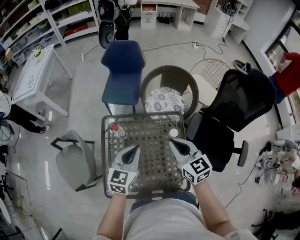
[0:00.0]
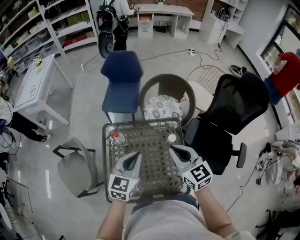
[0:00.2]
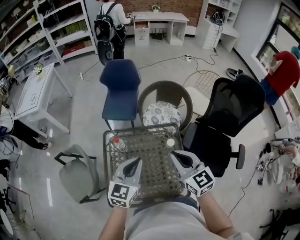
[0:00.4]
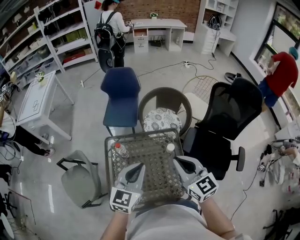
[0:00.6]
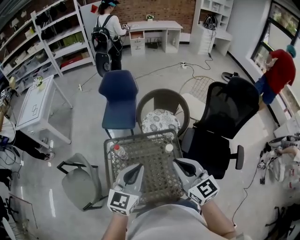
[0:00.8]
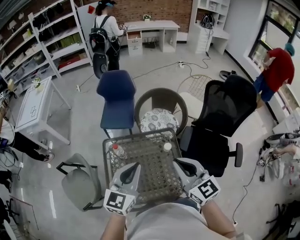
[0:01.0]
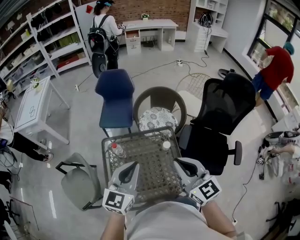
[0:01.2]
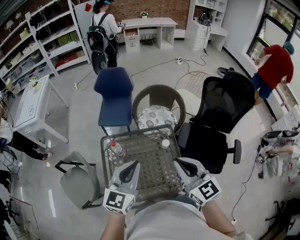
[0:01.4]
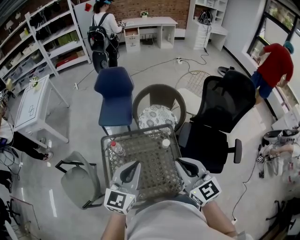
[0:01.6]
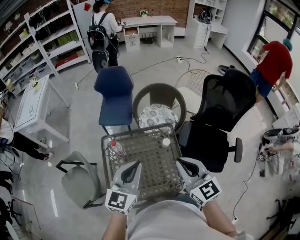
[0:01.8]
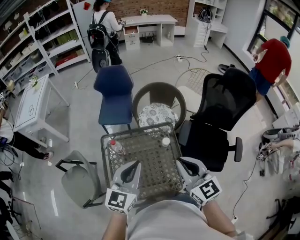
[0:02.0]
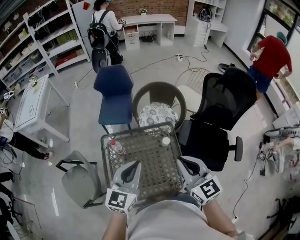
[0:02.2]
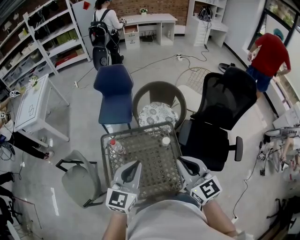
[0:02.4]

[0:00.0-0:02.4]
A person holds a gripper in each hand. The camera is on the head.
0:00.0 to 0:01.2: Both grippers move upward and backward, approximately 15 cm.
0:01.2 to 0:02.4: The grippers stay close to where they were, moving slightly.

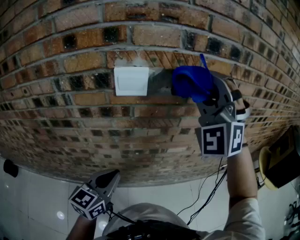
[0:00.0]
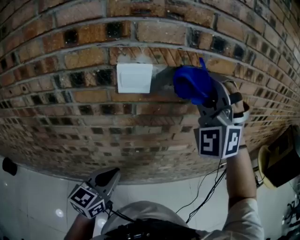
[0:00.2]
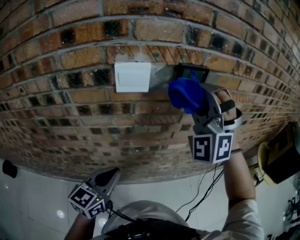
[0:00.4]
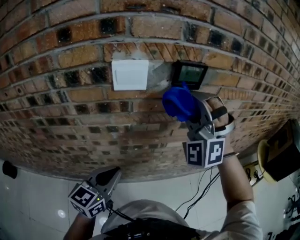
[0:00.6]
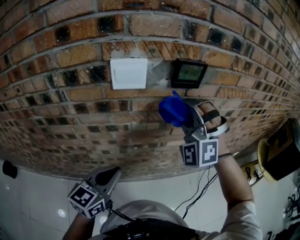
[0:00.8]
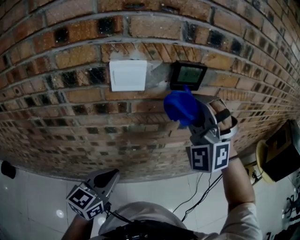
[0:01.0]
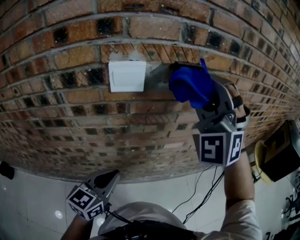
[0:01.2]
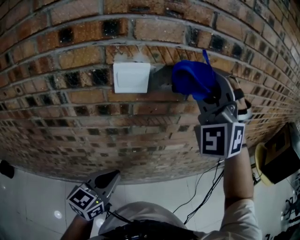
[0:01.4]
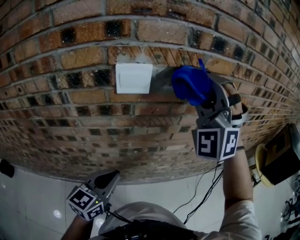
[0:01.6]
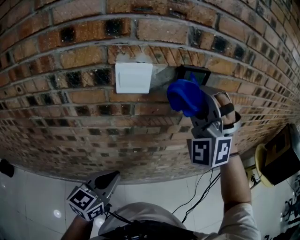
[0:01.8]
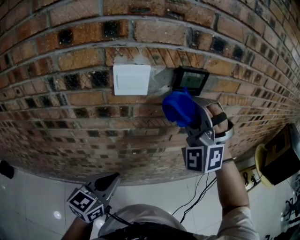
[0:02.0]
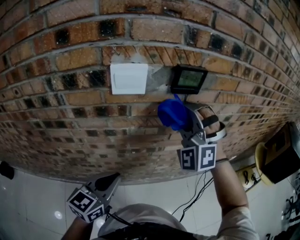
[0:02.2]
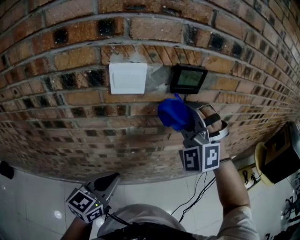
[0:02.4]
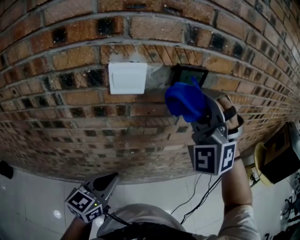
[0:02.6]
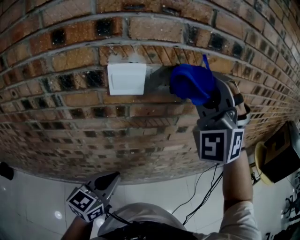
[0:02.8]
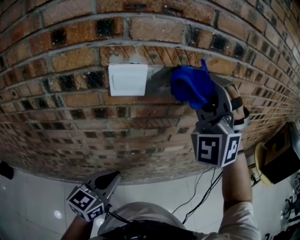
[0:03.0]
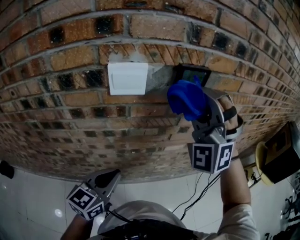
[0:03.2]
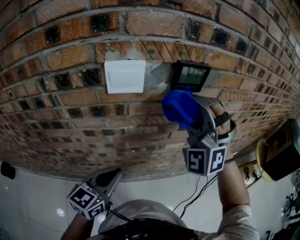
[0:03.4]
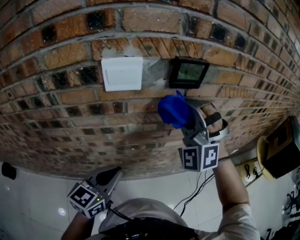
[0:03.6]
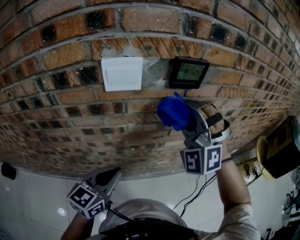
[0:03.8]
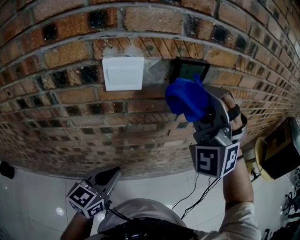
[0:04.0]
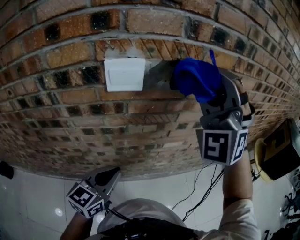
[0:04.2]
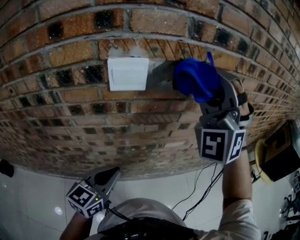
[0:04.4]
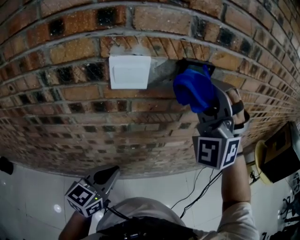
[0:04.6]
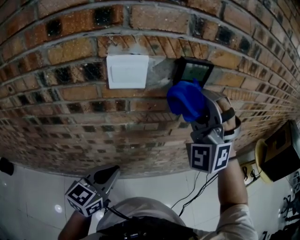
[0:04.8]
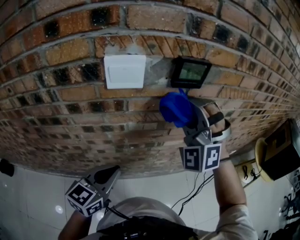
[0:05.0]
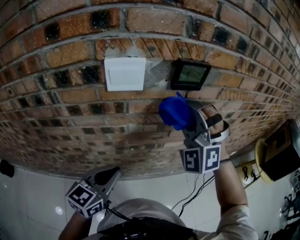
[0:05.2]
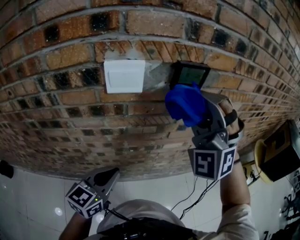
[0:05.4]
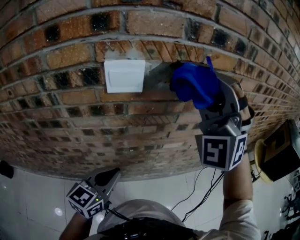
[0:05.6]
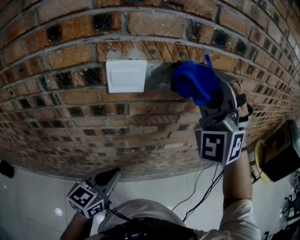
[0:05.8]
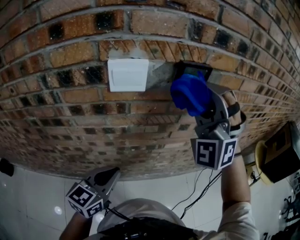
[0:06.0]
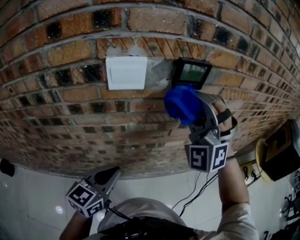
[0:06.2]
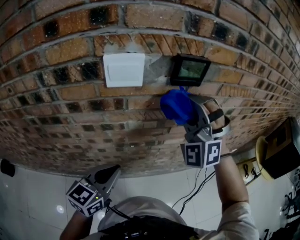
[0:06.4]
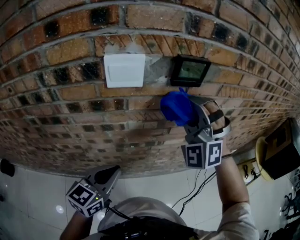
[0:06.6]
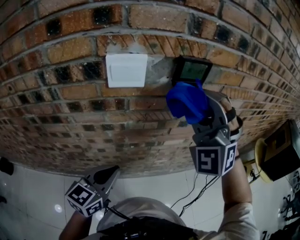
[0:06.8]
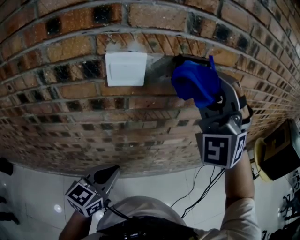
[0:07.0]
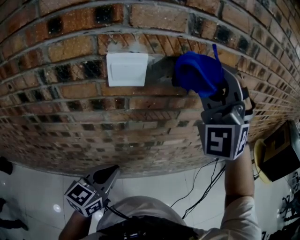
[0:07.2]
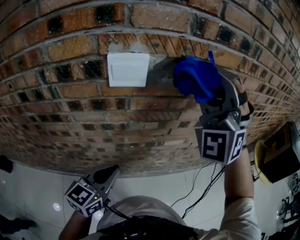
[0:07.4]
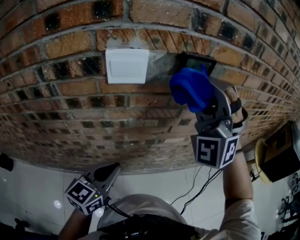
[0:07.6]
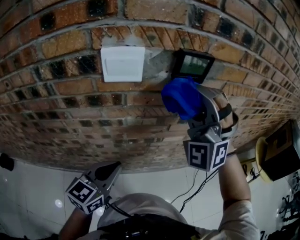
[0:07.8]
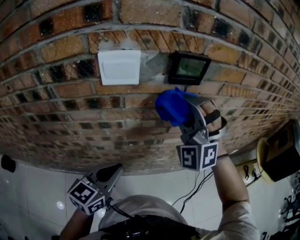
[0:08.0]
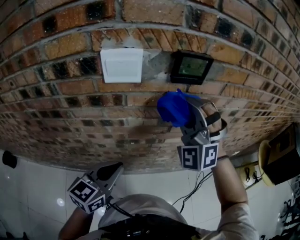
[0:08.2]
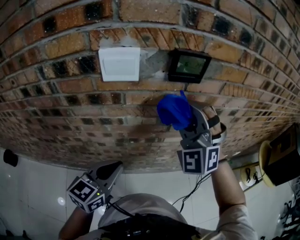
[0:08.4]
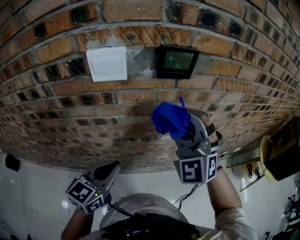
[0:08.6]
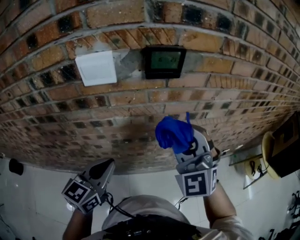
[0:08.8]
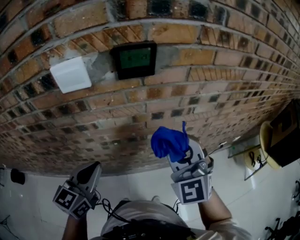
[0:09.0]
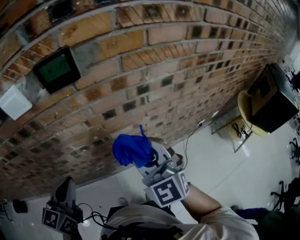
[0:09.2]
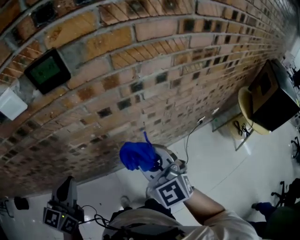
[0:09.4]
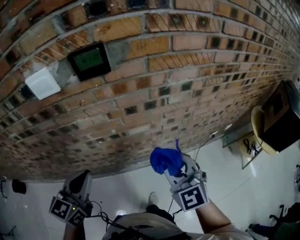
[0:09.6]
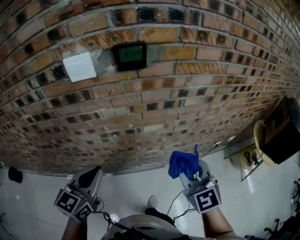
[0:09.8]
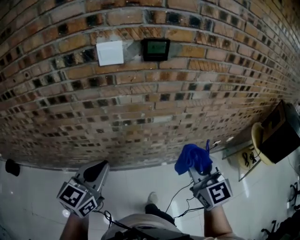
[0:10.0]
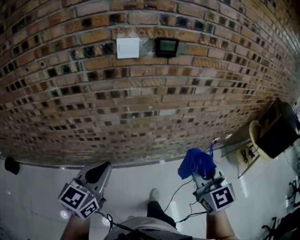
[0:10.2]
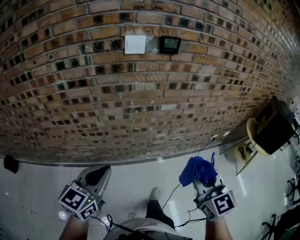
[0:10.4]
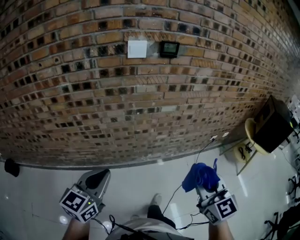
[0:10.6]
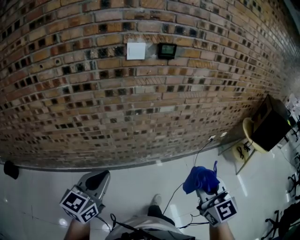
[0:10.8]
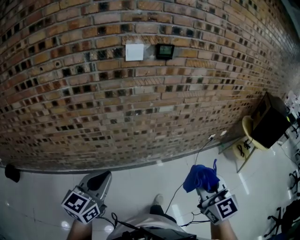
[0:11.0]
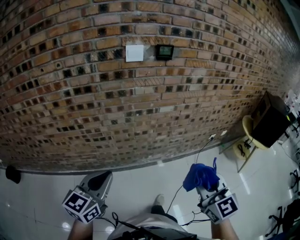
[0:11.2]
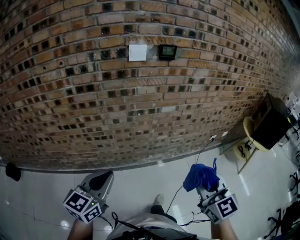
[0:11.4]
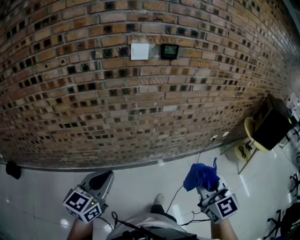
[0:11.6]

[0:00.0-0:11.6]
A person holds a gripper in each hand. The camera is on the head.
0:00.0 to 0:01.4: The right gripper reaches about 15 cm downward, then returns.
0:01.4 to 0:02.8: The right gripper moves approximately 15 cm downward and comes back.
0:02.8 to 0:04.4: The right gripper moves about 15 cm downward and comes back.
0:04.4 to 0:05.8: The right gripper travels downward and back again, some 15 cm each way.
0:05.8 to 0:07.2: The right gripper goes downward and returns, about 10 cm each way.
0:07.2 to 0:08.8: The right gripper travels downward by approximately 15 cm, and changes its angle by some 40 degrees.
0:08.8 to 0:10.2: The grippers both shift backward by about 25 cm. The right gripper changes its angle by roughly 40 degrees.
0:10.2 to 0:11.6: Both grippers move backward, about 15 cm.

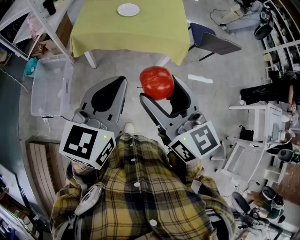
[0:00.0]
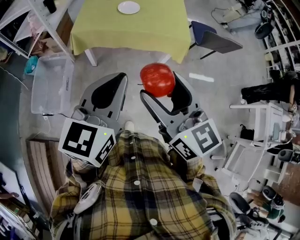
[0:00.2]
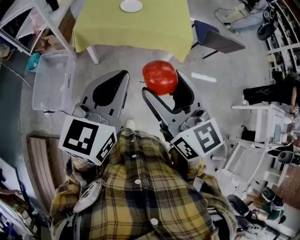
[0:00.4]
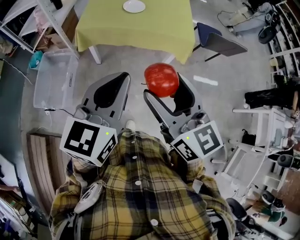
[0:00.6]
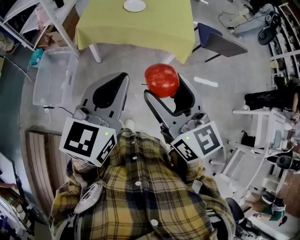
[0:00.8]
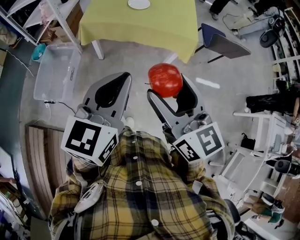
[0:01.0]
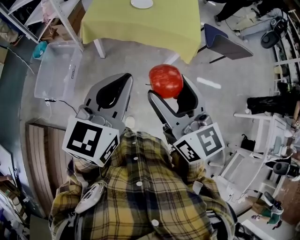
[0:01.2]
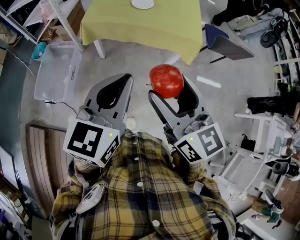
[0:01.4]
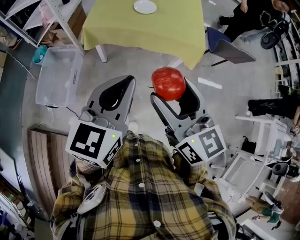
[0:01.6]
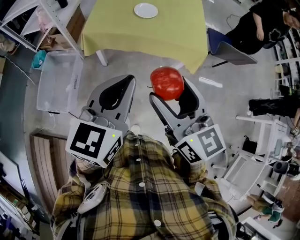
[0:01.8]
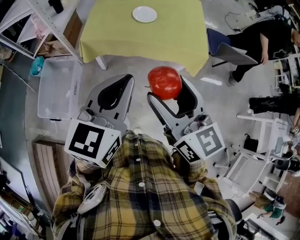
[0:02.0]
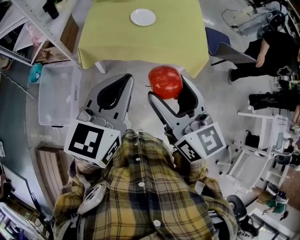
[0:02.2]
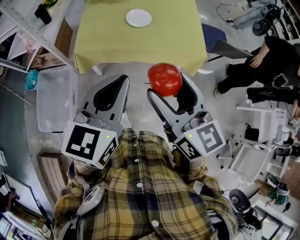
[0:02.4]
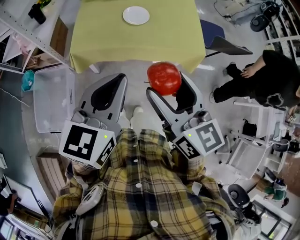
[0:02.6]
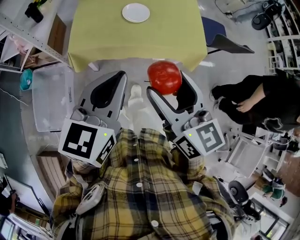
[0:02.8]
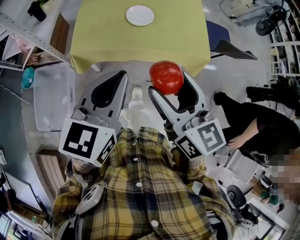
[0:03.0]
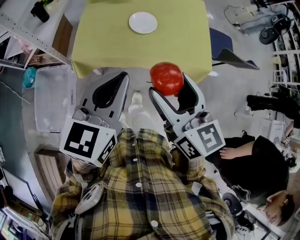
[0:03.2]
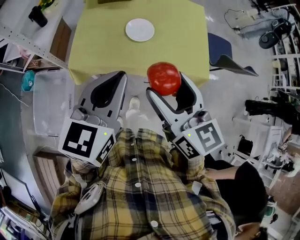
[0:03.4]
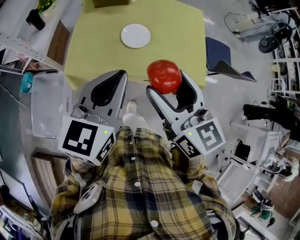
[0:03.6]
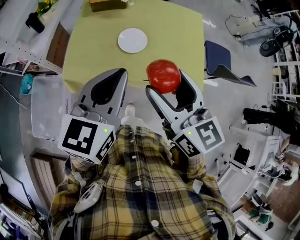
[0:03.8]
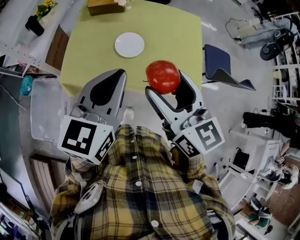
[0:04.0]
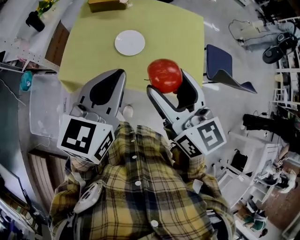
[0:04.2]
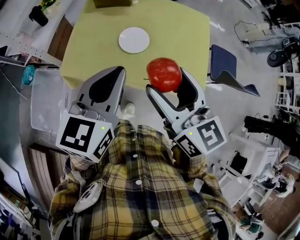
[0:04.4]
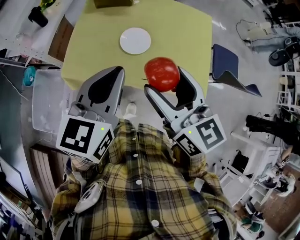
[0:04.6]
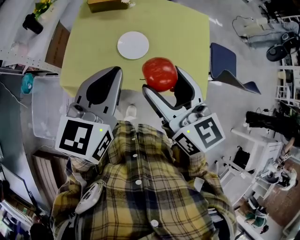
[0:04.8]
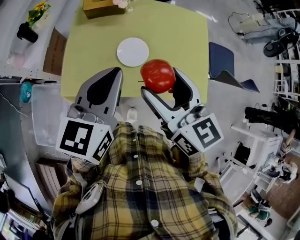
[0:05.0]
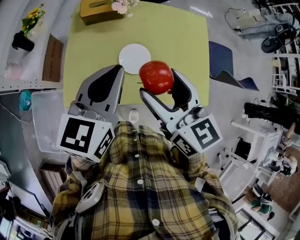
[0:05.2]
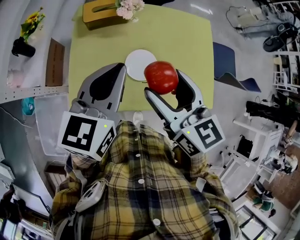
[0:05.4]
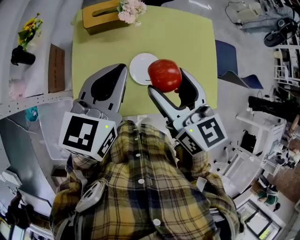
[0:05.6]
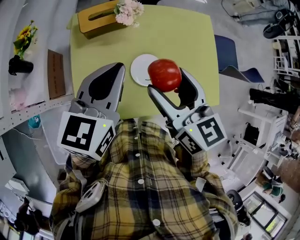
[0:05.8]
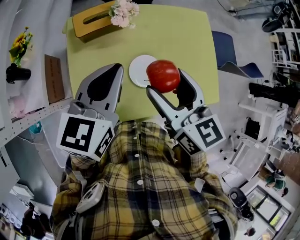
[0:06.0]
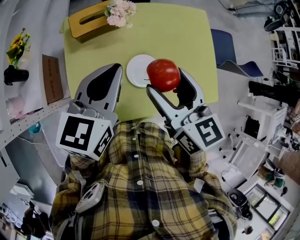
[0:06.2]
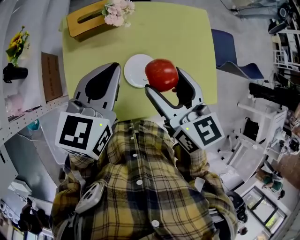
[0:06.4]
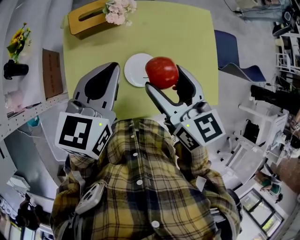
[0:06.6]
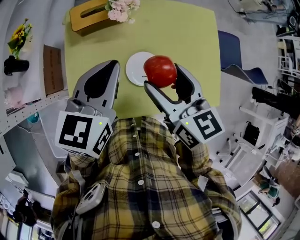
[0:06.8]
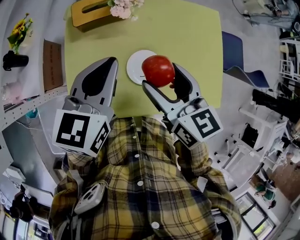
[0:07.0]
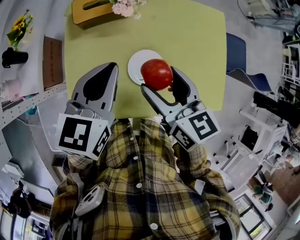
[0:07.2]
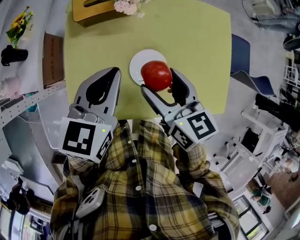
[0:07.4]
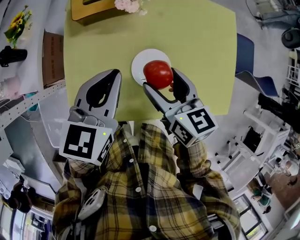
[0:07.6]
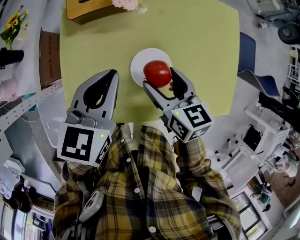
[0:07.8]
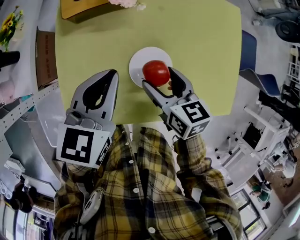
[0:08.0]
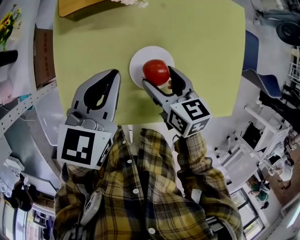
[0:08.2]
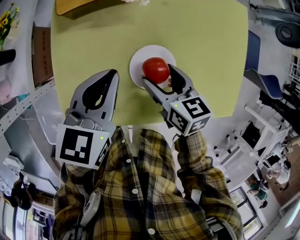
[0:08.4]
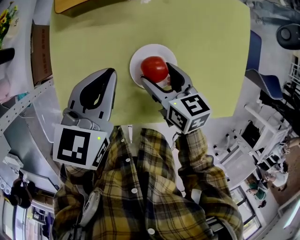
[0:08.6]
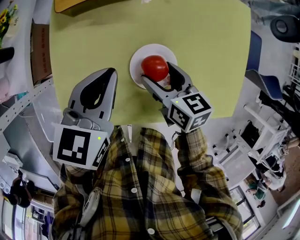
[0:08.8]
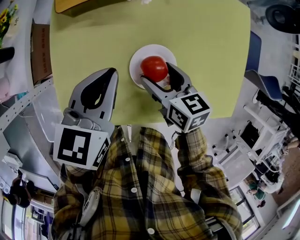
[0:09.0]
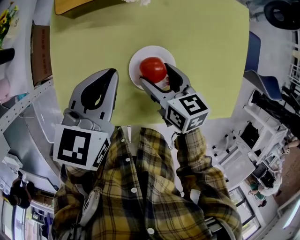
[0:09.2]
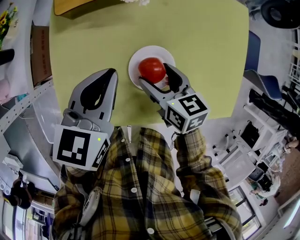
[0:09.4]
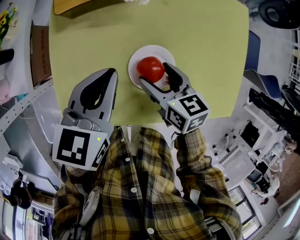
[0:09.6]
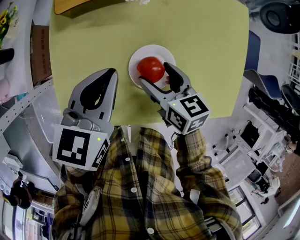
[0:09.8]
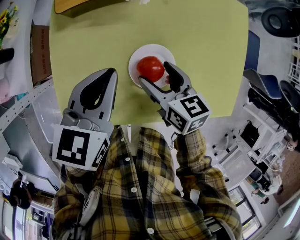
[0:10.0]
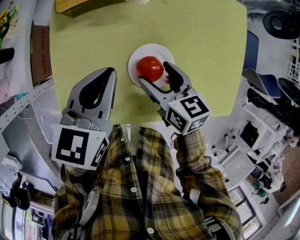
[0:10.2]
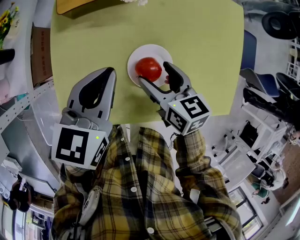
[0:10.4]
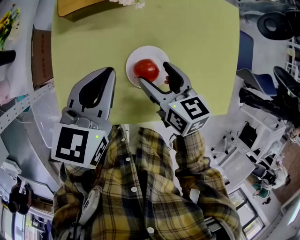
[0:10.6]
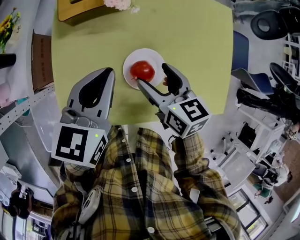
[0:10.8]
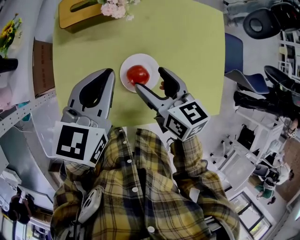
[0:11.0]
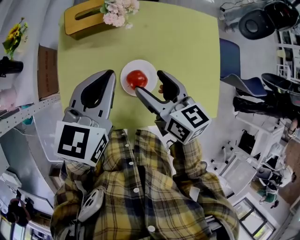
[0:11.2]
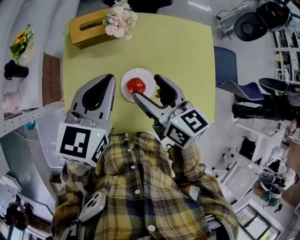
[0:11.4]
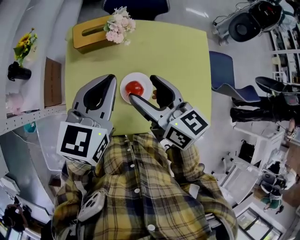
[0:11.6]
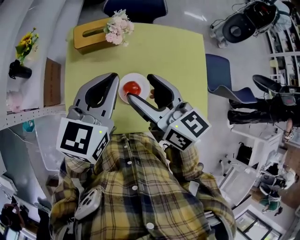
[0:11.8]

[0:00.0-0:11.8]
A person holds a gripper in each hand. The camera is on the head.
0:00.0 to 0:01.4: There are only small adjustments of the grippers.
0:01.4 to 0:03.0: The two grippers go about 25 cm forward.
0:03.0 to 0:04.4: The grippers both shift forward and to the right by roughly 20 cm.
0:04.4 to 0:06.0: Both grippers move forward and to the left, roughly 25 cm. The right gripper changes its angle by some 20 degrees.
0:06.0 to 0:07.4: Both grippers travel together downward, about 10 cm.
0:07.4 to 0:08.8: The right gripper heads downward, covering approximately 15 cm. Meanwhile the left gripper goes some 10 cm downward.
0:08.8 to 0:10.4: The grippers make only small movements.
0:10.4 to 0:11.8: Both grippers travel together upward, roughly 20 cm. The right gripper swivels roughly 30 degrees.
